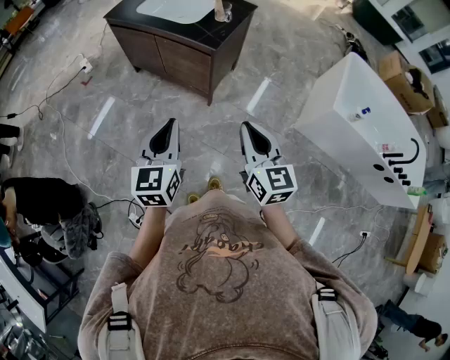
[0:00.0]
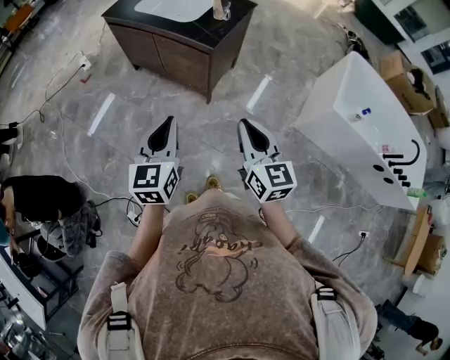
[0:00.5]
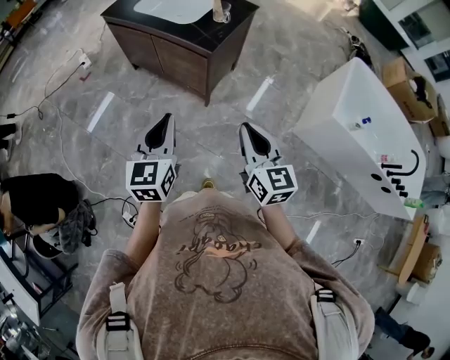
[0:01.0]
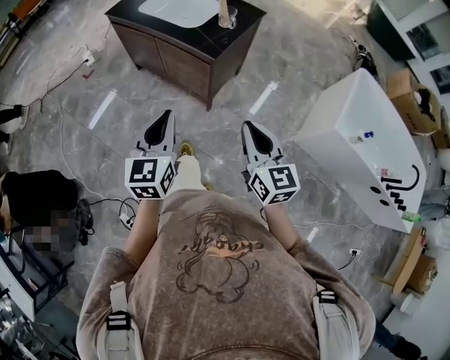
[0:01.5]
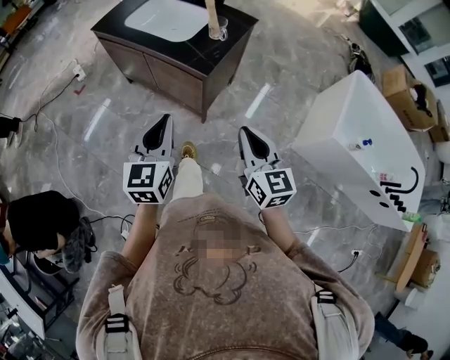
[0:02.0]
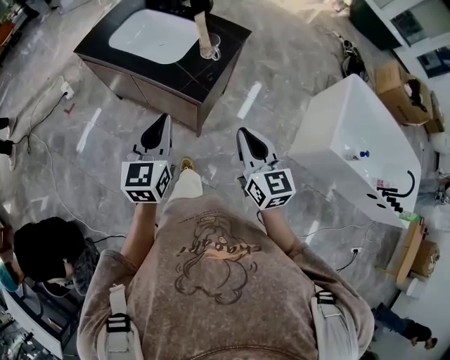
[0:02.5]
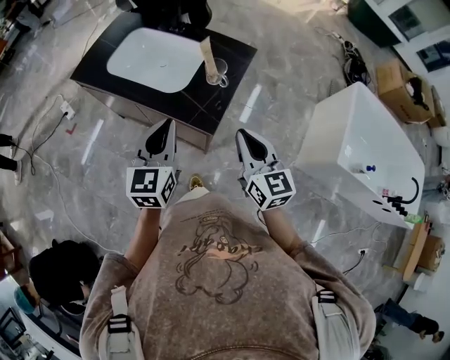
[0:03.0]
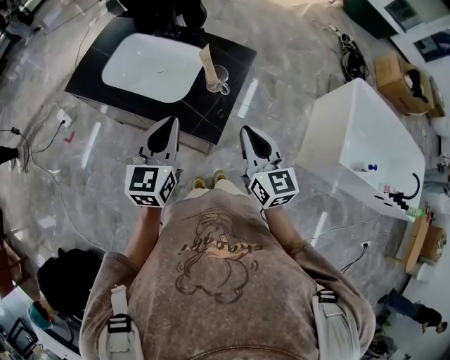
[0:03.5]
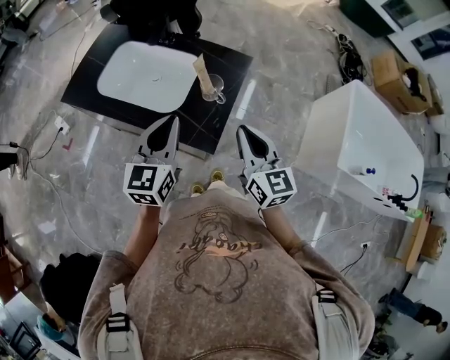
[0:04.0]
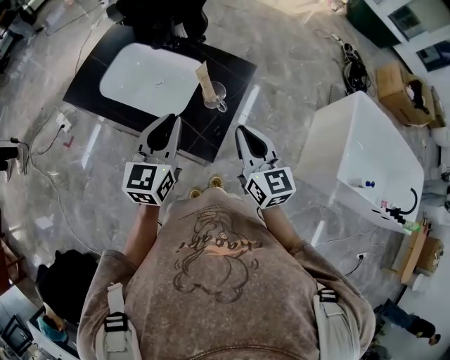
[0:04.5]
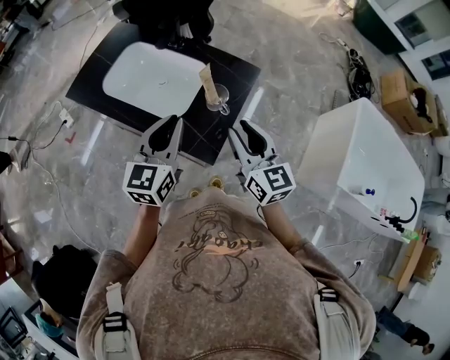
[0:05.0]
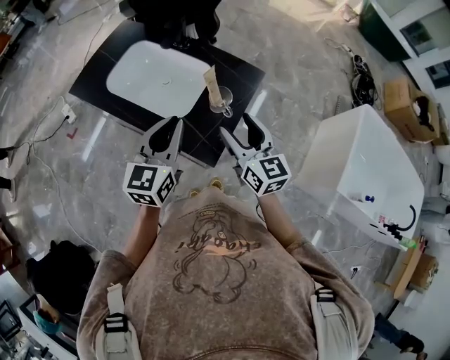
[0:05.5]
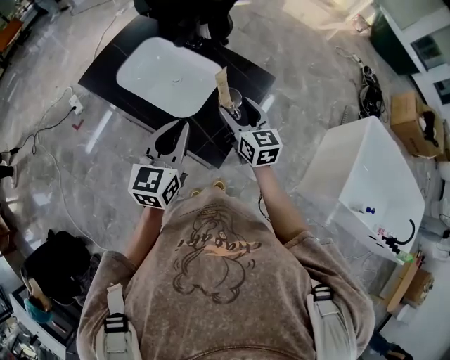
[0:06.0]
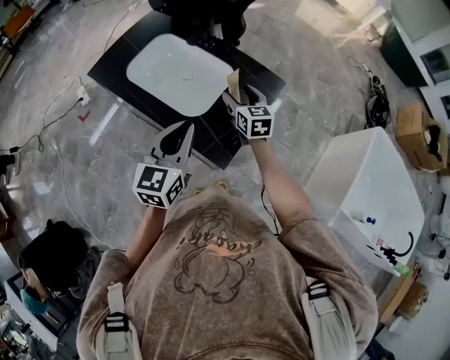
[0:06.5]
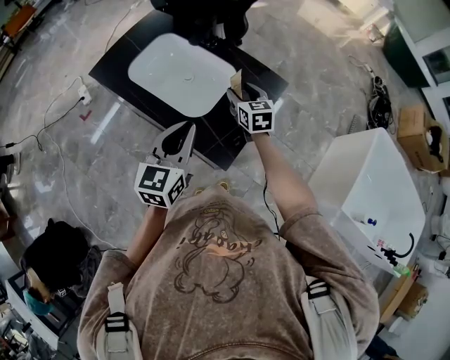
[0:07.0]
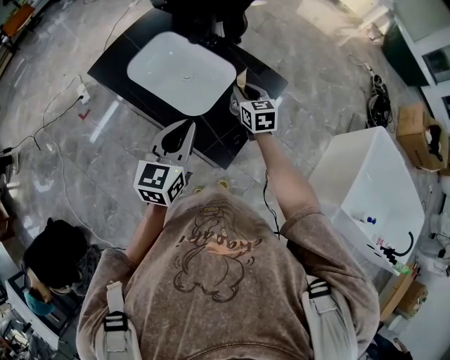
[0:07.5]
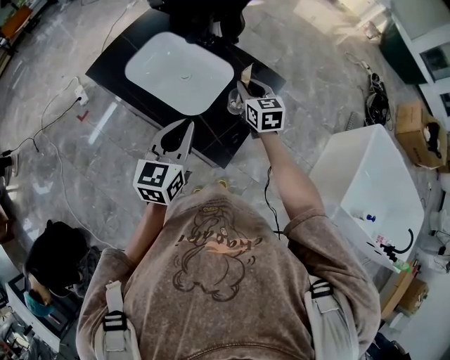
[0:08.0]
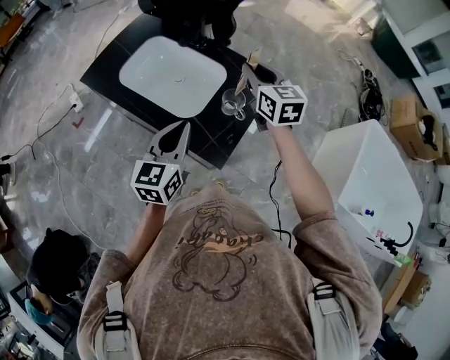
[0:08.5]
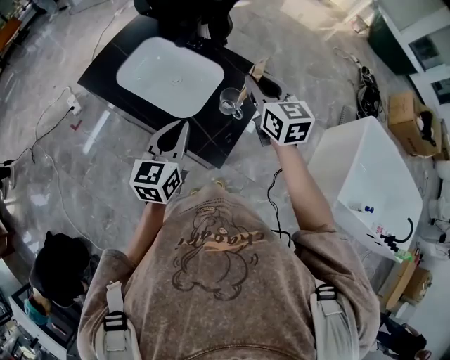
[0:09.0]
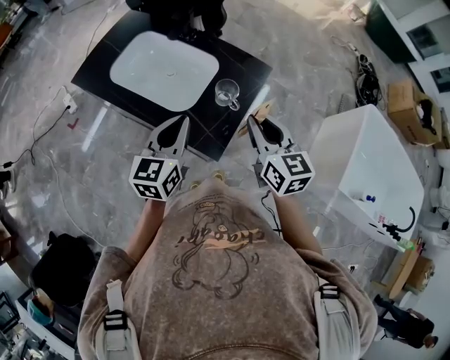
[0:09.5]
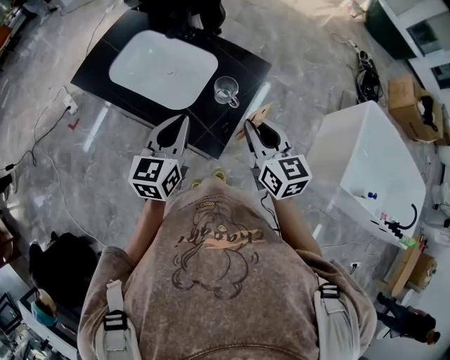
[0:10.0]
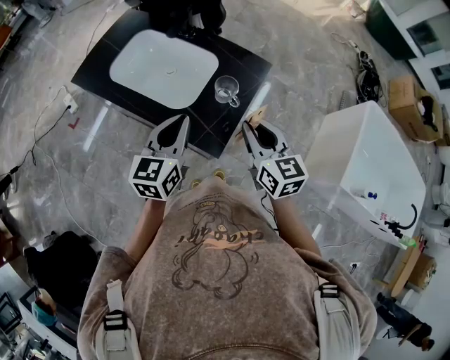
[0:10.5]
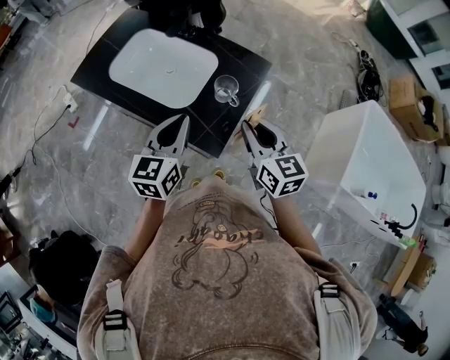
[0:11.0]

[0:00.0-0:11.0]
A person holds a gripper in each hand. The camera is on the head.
0:00.0 to 0:02.0: The two grippers go some 15 cm forward.
0:02.0 to 0:03.5: The grippers both shift forward by approximately 30 cm.
0:03.5 to 0:05.5: The right gripper moves forward, roughly 10 cm, and opens its fingers. The left gripper heads forward, covering approximately 5 cm.
0:05.5 to 0:07.5: The right gripper goes approximately 20 cm forward and downward, swivels some 20 degrees, and closes.
0:07.5 to 0:09.0: The right gripper travels upward by roughly 15 cm.
0:09.0 to 0:11.0: The right gripper is displaced backward and downward by about 15 cm.

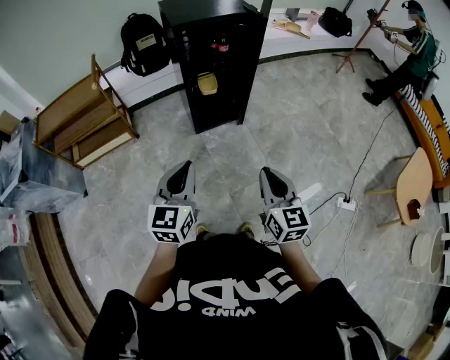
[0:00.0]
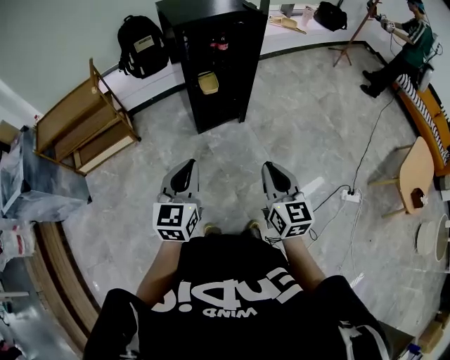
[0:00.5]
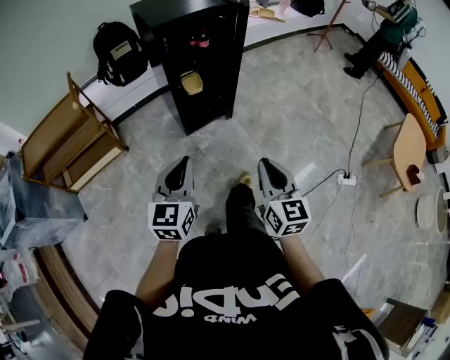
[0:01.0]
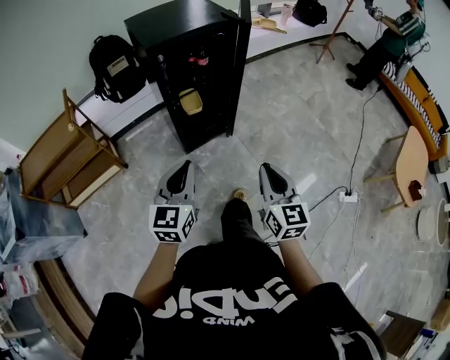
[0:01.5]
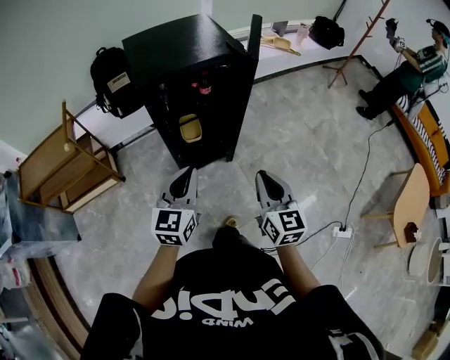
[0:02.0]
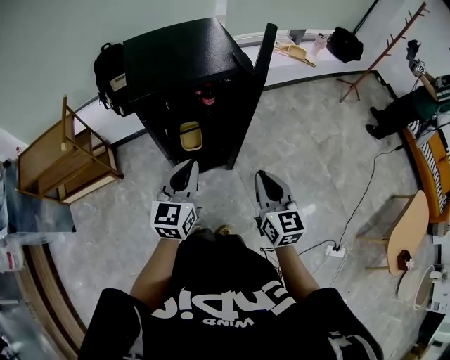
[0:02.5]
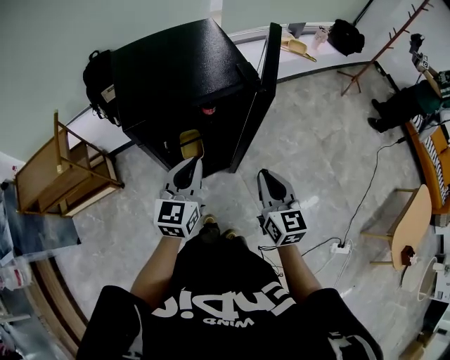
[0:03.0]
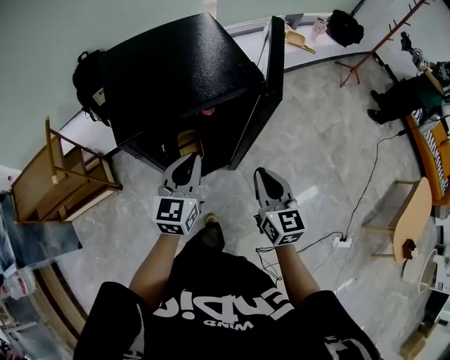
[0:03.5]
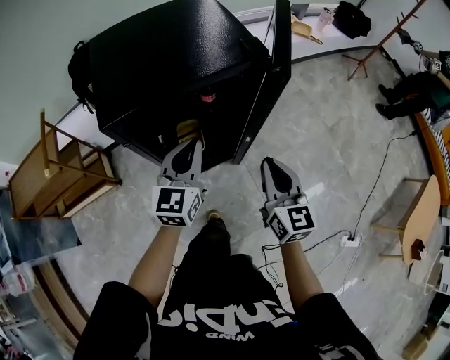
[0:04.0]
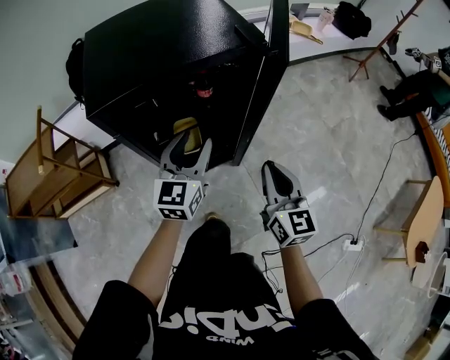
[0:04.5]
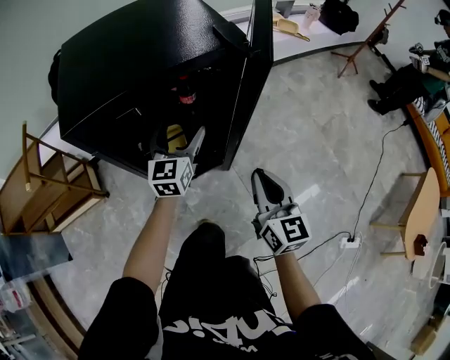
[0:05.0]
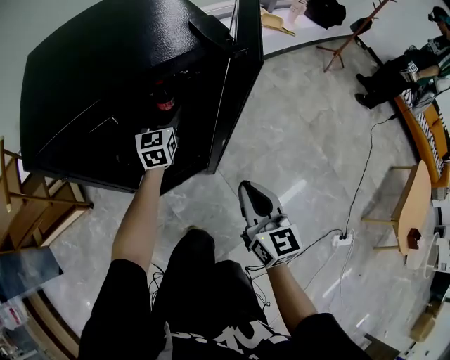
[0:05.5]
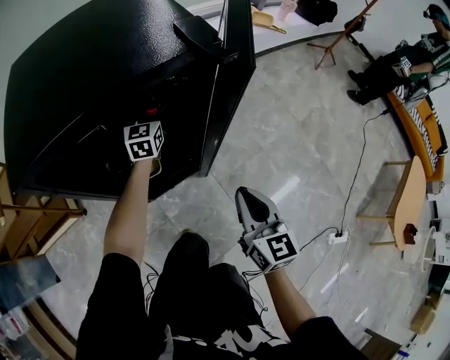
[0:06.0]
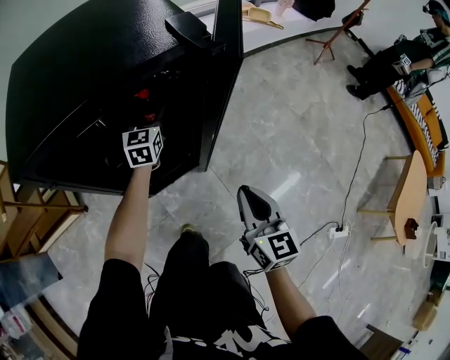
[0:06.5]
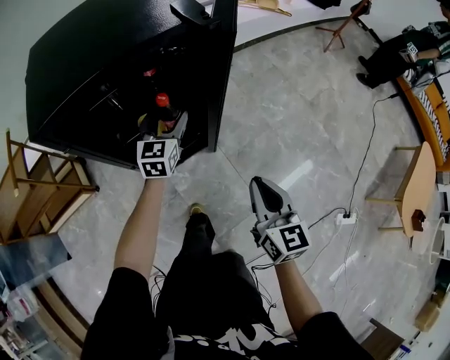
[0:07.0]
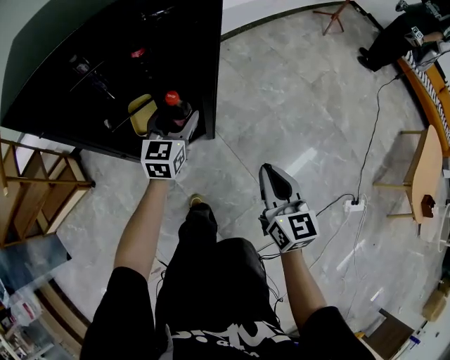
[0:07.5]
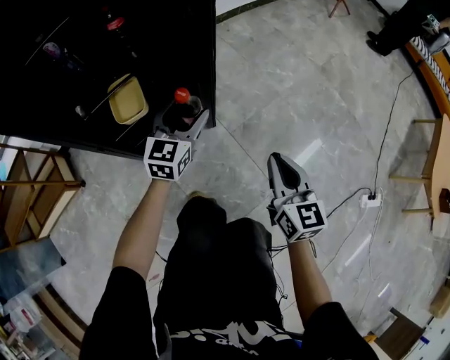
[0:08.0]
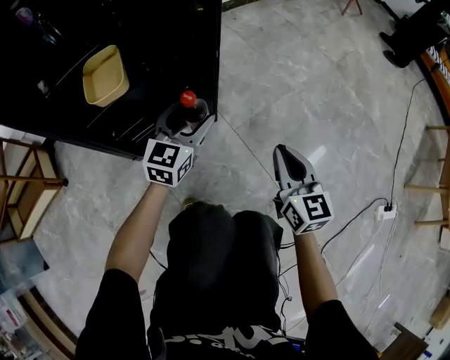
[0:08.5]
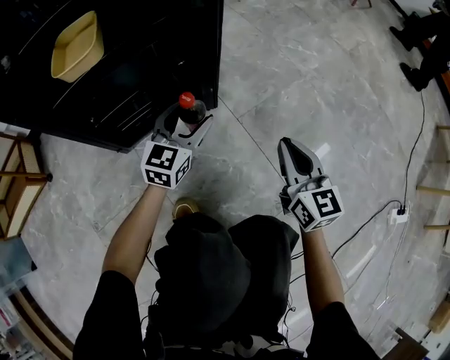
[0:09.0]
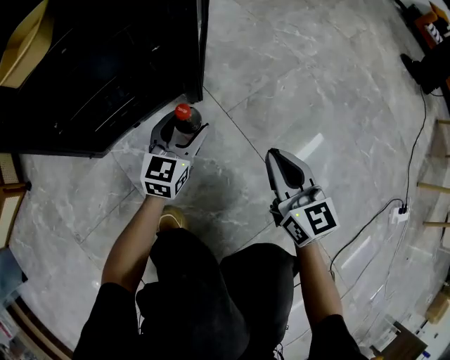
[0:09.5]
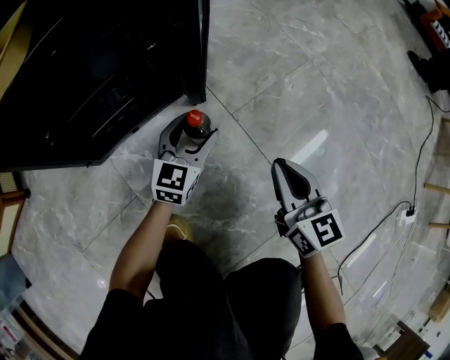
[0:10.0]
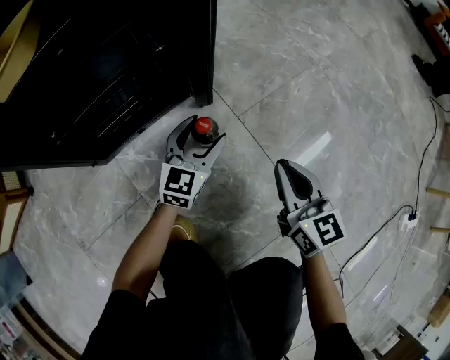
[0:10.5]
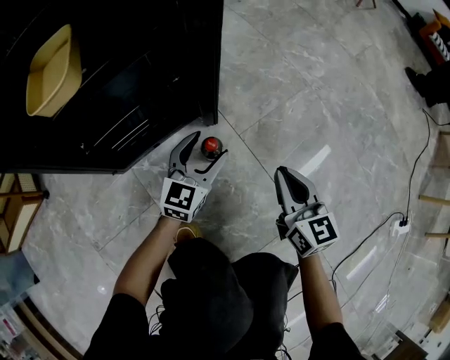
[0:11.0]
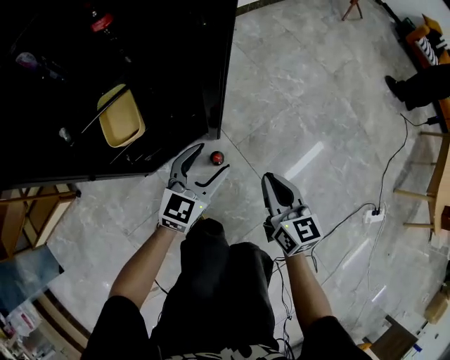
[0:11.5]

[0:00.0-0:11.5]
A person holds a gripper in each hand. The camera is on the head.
0:00.0 to 0:02.0: Both grippers move forward, some 30 cm.
0:02.0 to 0:04.0: Both grippers move forward, roughly 25 cm.
0:04.0 to 0:06.0: The right gripper goes about 10 cm downward; the left gripper travels forward and downward by roughly 30 cm, and opens its fingers.
0:06.0 to 0:07.5: The right gripper moves backward and to the right, roughly 10 cm. Meanwhile the left gripper is displaced backward and to the right by roughly 25 cm.
0:07.5 to 0:09.5: Both grippers move downward, some 50 cm.
0:09.5 to 0:11.5: The two grippers go approximately 30 cm upward.

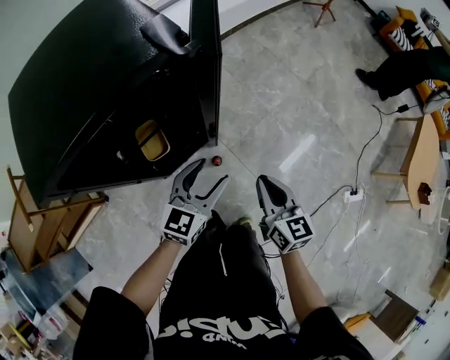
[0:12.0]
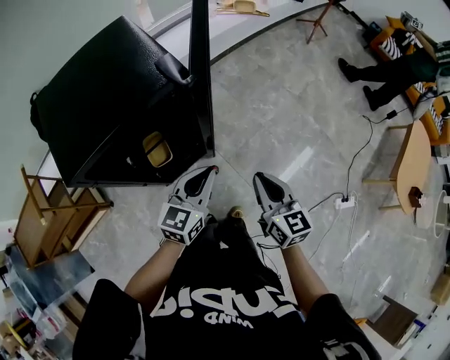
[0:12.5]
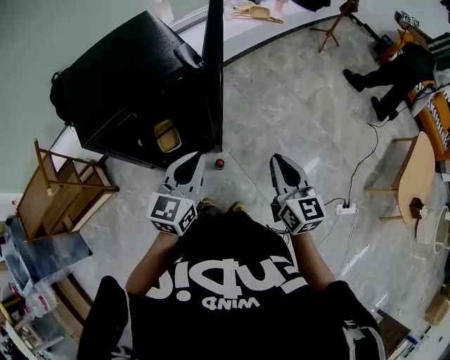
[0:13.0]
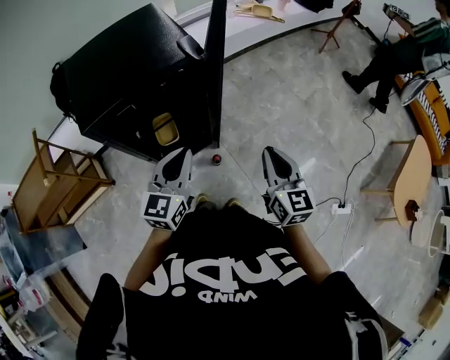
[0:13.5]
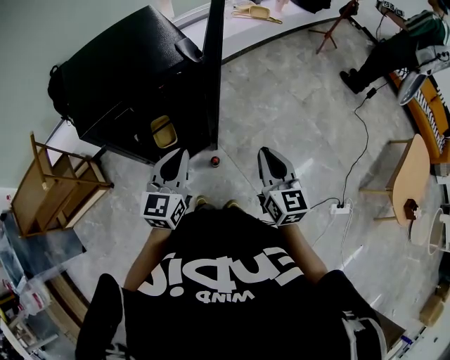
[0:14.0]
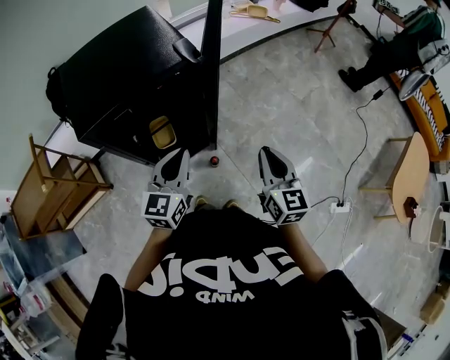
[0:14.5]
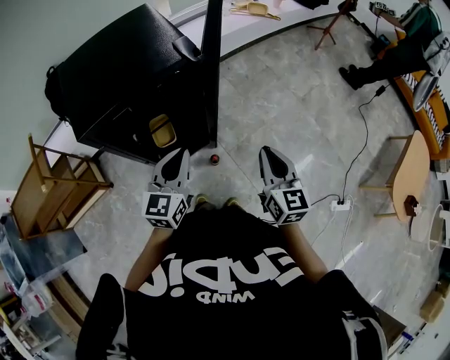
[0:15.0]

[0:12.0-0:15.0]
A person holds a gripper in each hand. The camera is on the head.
0:12.0 to 0:13.5: Both grippers travel together upward, about 15 cm. The left gripper changes its angle by some 20 degrees, and closes up.
0:13.5 to 0:15.0: There are only small adjustments of the grippers.

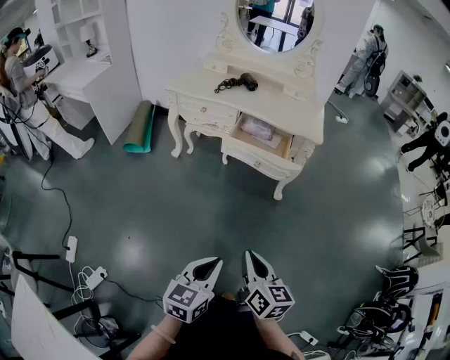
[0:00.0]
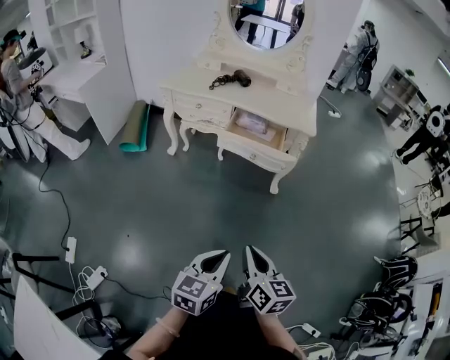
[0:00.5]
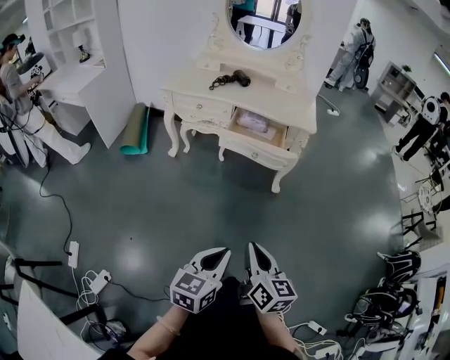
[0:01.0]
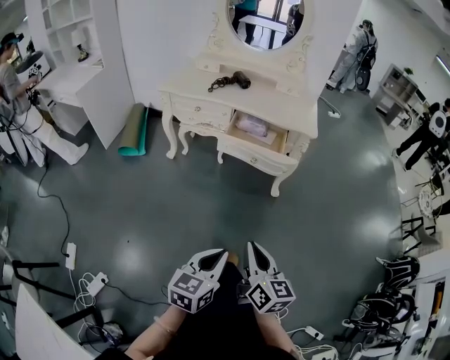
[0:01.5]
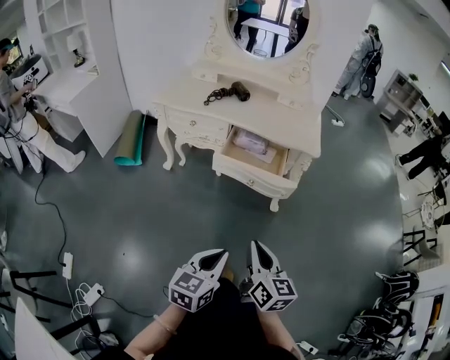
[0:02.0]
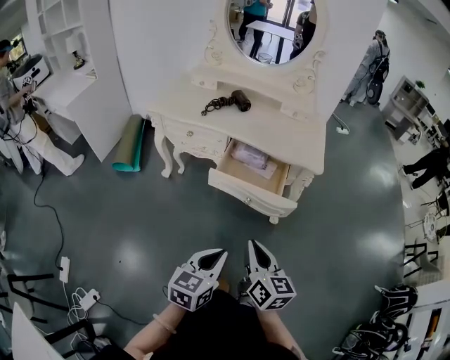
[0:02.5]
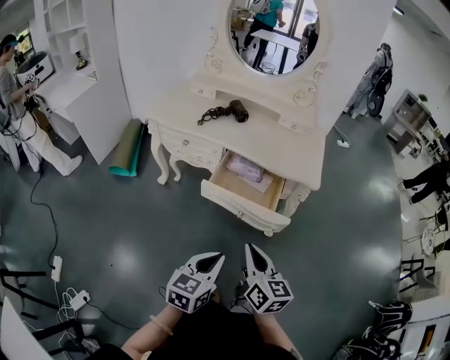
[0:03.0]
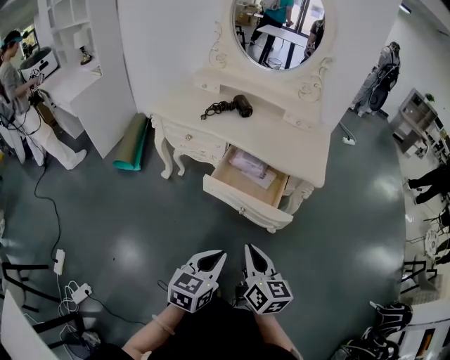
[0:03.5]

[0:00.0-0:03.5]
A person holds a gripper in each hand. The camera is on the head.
0:00.0 to 0:02.0: The grippers both shift forward by roughly 10 cm.
0:02.0 to 0:03.5: The grippers both shift forward by approximately 15 cm.
